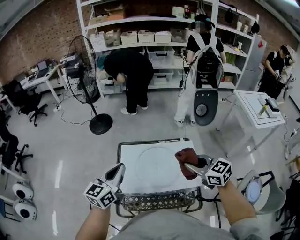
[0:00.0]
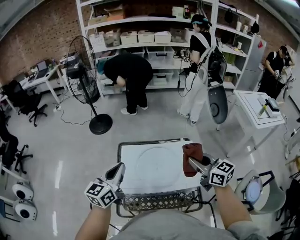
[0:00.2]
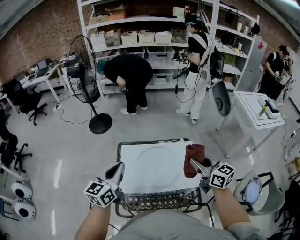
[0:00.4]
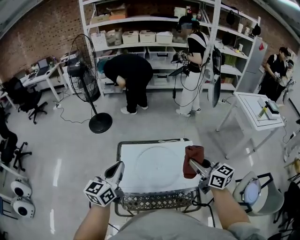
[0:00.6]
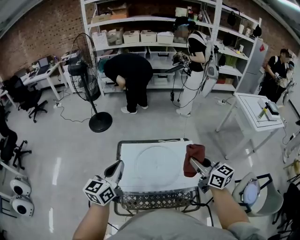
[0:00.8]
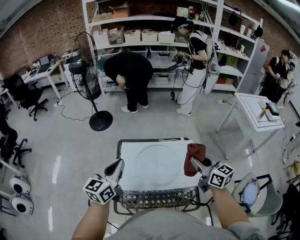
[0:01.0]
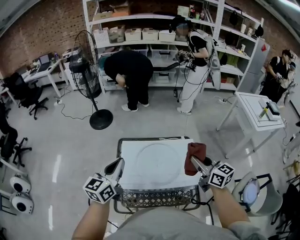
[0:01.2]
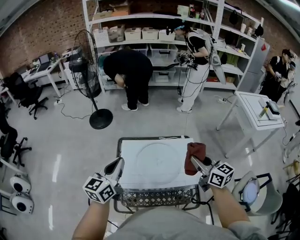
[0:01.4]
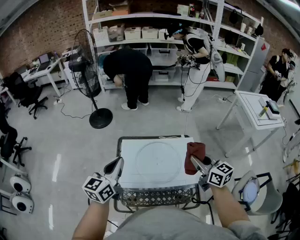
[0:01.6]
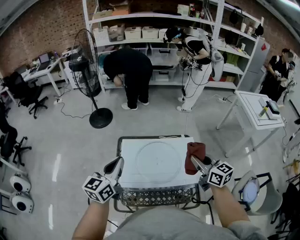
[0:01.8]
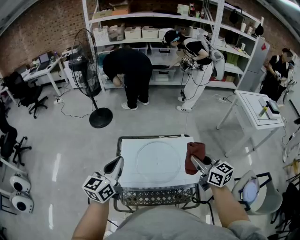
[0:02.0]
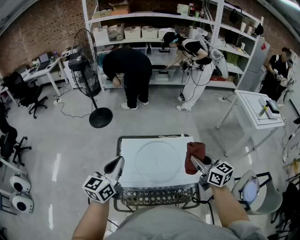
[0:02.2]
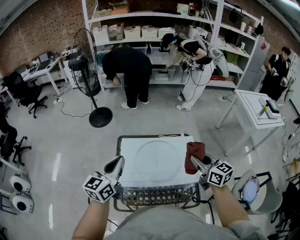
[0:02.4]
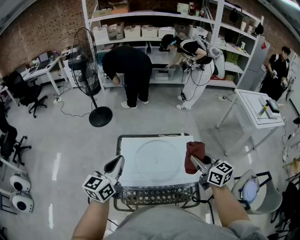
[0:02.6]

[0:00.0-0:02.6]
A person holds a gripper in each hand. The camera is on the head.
0:00.0 to 0:01.2: The right gripper rotates some 20 degrees.
0:01.2 to 0:02.6: Neither gripper changes place.

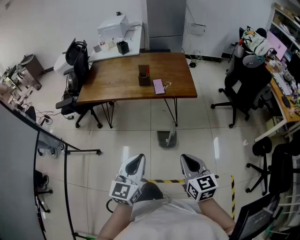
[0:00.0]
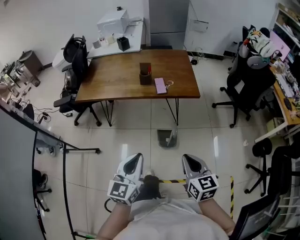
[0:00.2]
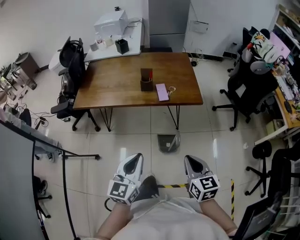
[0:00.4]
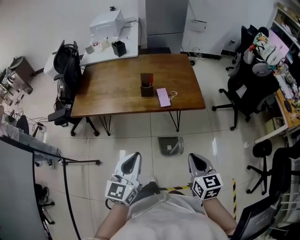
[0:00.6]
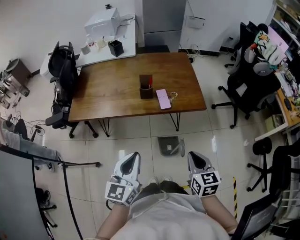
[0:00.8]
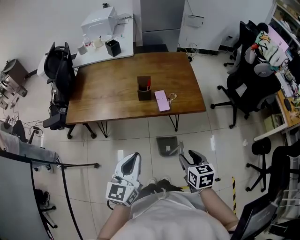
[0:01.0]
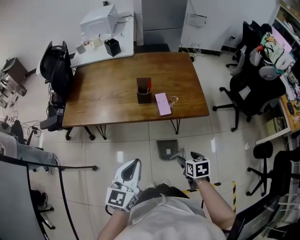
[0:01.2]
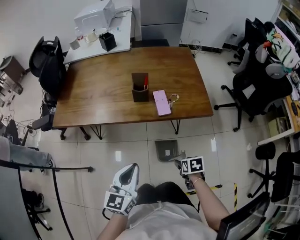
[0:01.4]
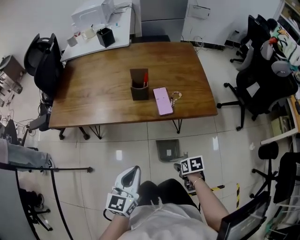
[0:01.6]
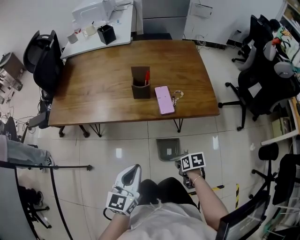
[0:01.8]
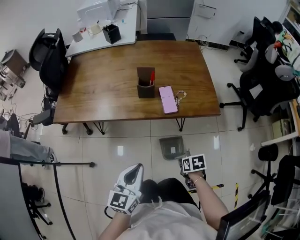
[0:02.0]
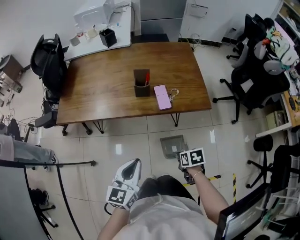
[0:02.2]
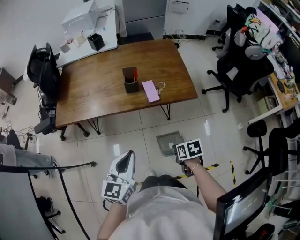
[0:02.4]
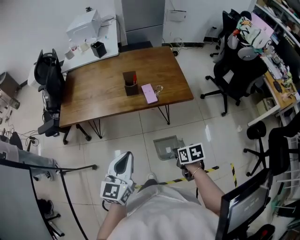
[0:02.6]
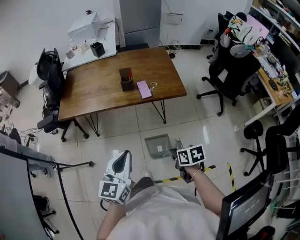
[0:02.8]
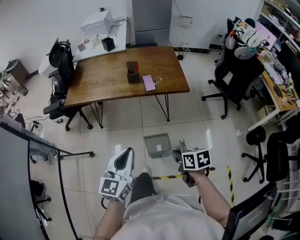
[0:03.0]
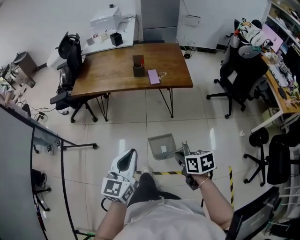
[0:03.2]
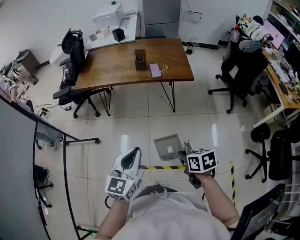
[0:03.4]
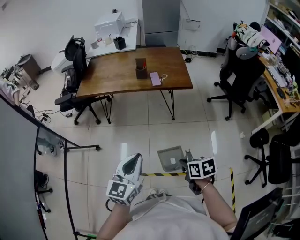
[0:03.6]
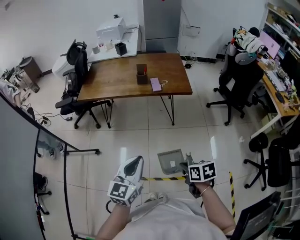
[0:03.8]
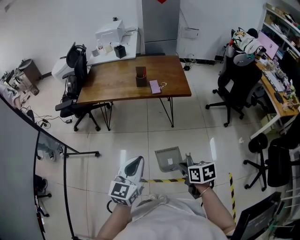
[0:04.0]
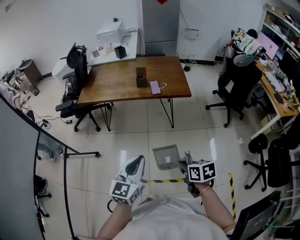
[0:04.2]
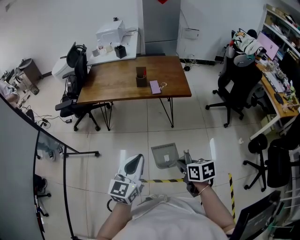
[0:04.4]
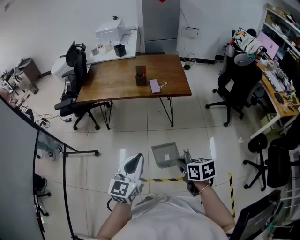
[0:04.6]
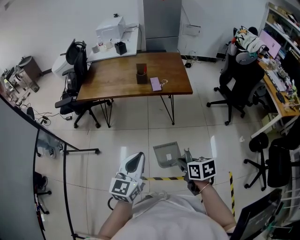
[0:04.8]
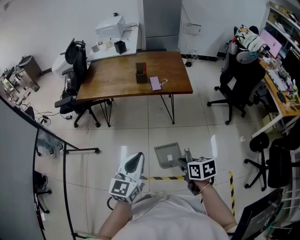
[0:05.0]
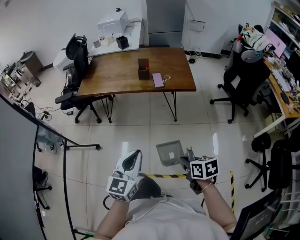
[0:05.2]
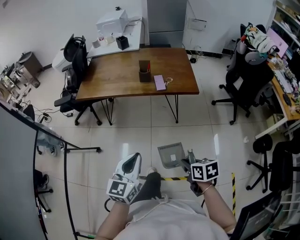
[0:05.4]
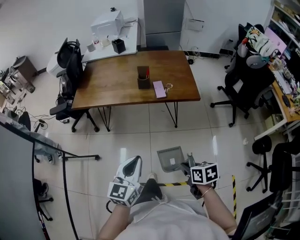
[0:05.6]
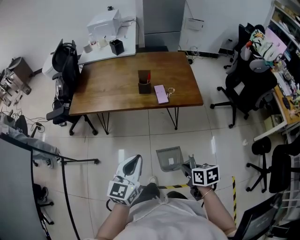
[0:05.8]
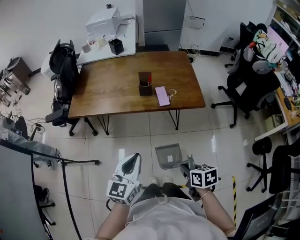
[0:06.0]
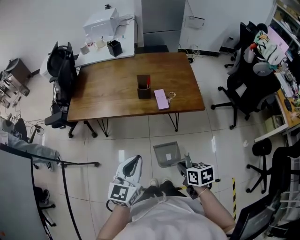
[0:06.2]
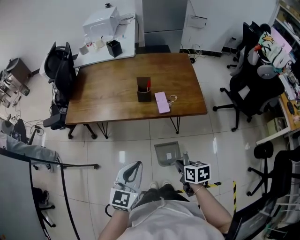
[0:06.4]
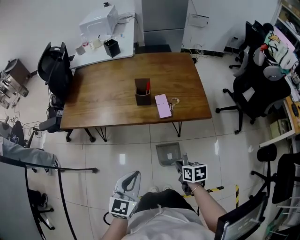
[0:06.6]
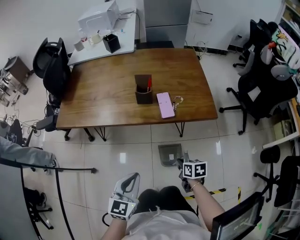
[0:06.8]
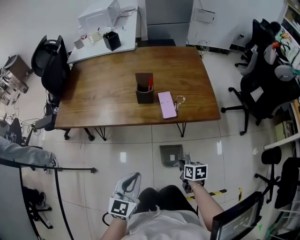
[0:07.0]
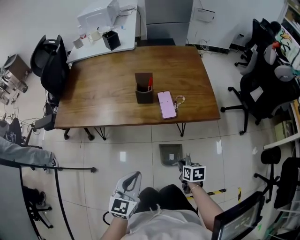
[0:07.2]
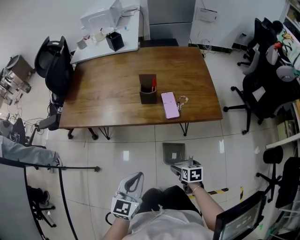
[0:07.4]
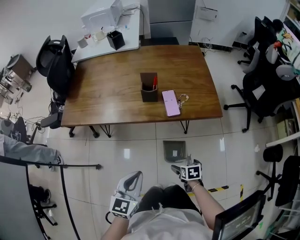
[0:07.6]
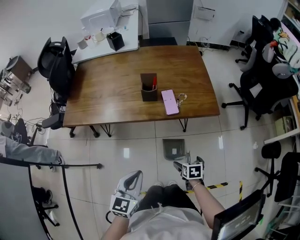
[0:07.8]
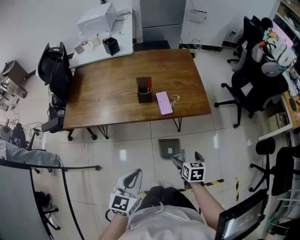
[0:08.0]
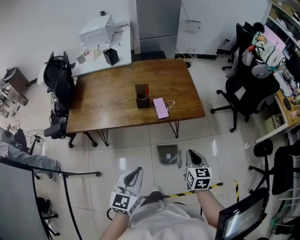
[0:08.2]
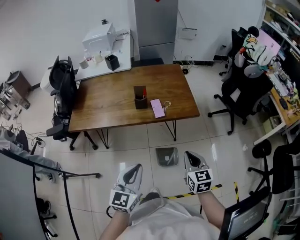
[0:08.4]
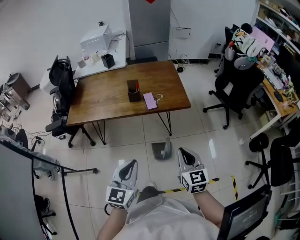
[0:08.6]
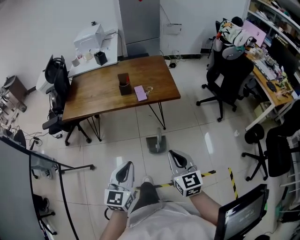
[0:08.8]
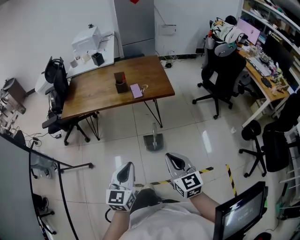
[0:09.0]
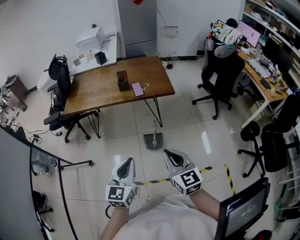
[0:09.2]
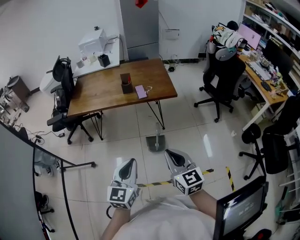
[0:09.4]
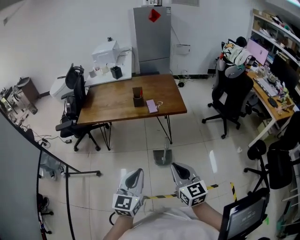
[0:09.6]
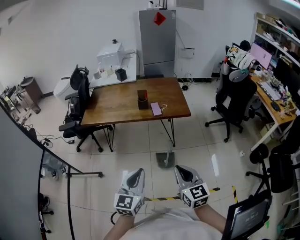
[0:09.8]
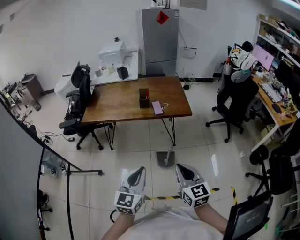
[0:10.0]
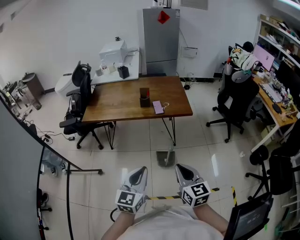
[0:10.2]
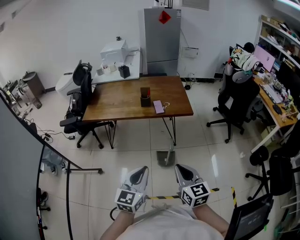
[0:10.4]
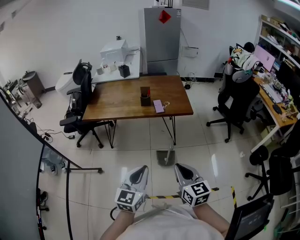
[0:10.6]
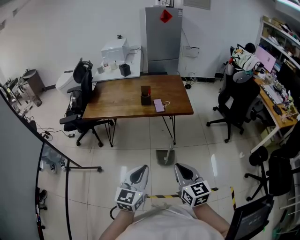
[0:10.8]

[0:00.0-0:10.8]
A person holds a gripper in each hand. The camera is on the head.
0:00.0 to 0:01.6: The right gripper is displaced downward and forward by about 50 cm, points its fingers about 50 degrees further downward, and opens. The left gripper travels forward and downward by roughly 35 cm.
0:01.6 to 0:03.0: The right gripper goes about 35 cm upward and backward, rotates about 20 degrees, and closes its fingers; the left gripper goes about 30 cm backward and upward.
0:03.0 to 0:04.6: The two grippers go about 10 cm backward.
0:04.6 to 0:06.2: Both grippers move forward, approximately 20 cm.
0:06.2 to 0:07.8: The right gripper is displaced downward and forward by about 20 cm, and opens up. Meanwhile the left gripper goes about 10 cm downward.
0:07.8 to 0:09.2: The left gripper travels backward, upward and to the right by roughly 30 cm, while the right gripper is displaced upward and backward by some 50 cm, tilts its fingers approximately 50 degrees upward, and closes.
0:09.2 to 0:10.8: The grippers stay close to where they were, moving slightly.

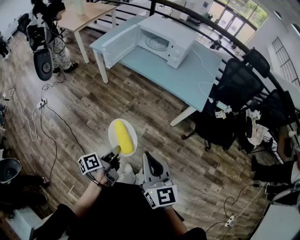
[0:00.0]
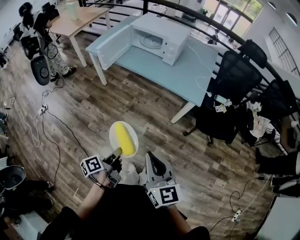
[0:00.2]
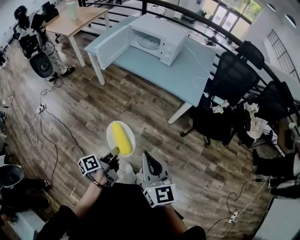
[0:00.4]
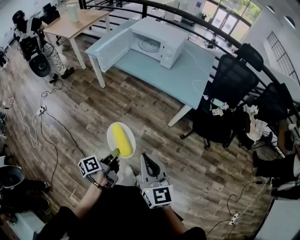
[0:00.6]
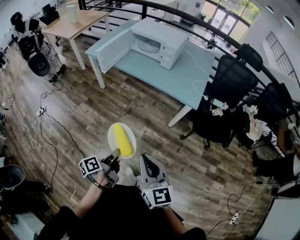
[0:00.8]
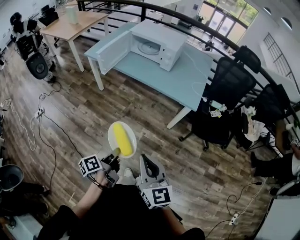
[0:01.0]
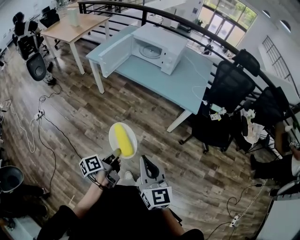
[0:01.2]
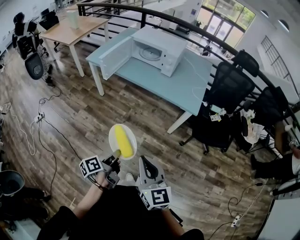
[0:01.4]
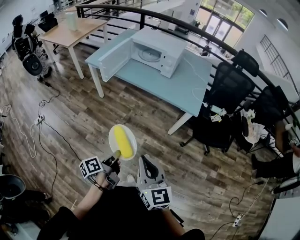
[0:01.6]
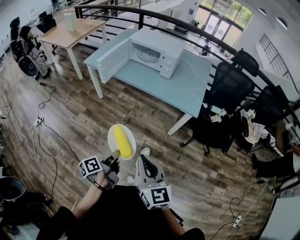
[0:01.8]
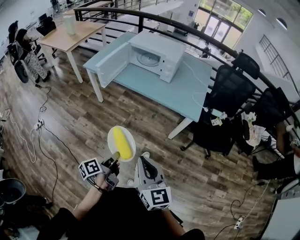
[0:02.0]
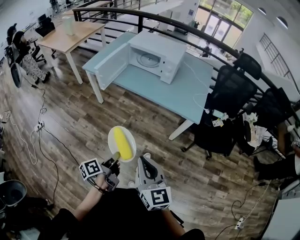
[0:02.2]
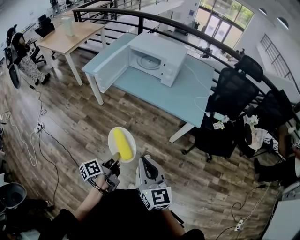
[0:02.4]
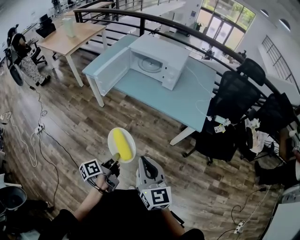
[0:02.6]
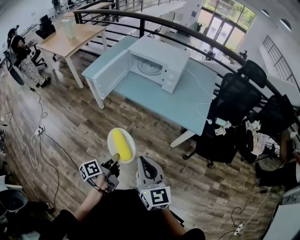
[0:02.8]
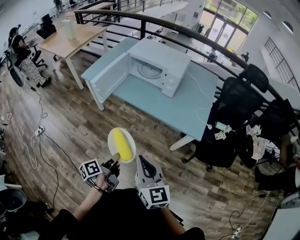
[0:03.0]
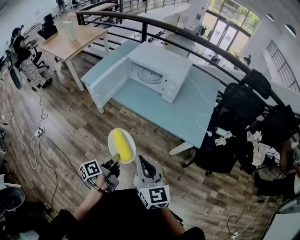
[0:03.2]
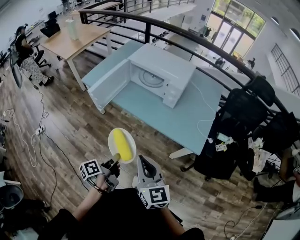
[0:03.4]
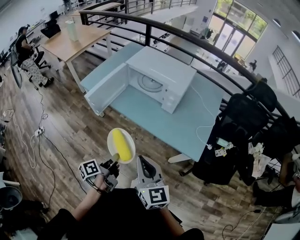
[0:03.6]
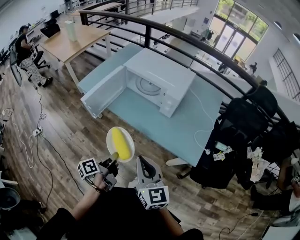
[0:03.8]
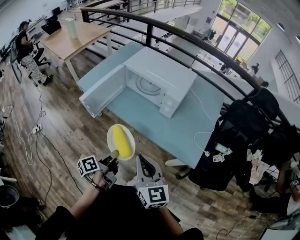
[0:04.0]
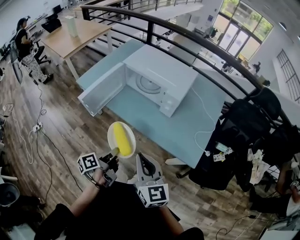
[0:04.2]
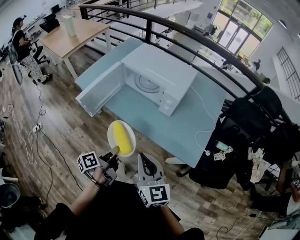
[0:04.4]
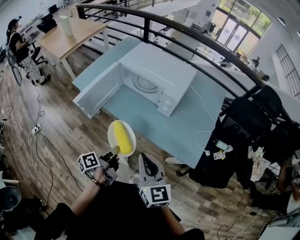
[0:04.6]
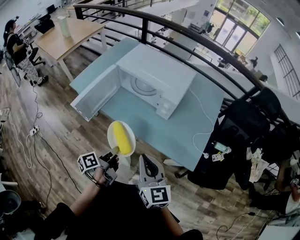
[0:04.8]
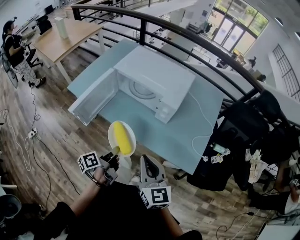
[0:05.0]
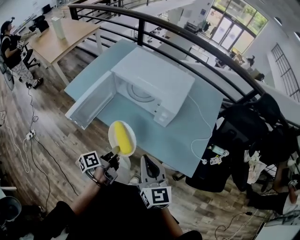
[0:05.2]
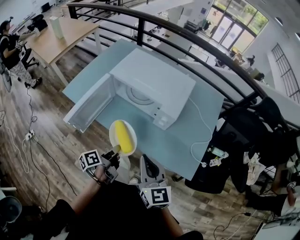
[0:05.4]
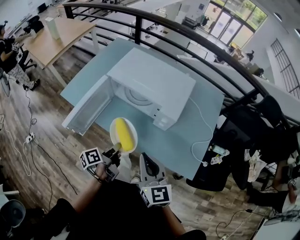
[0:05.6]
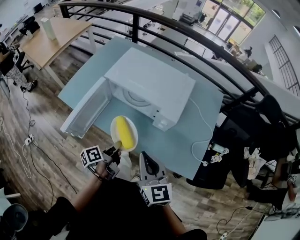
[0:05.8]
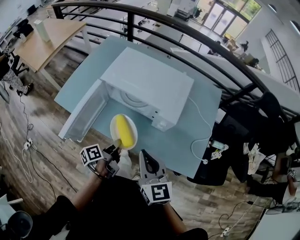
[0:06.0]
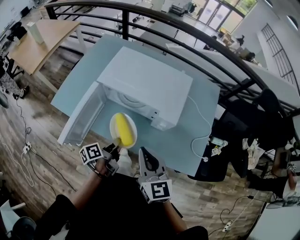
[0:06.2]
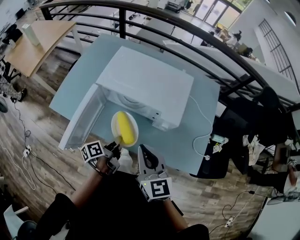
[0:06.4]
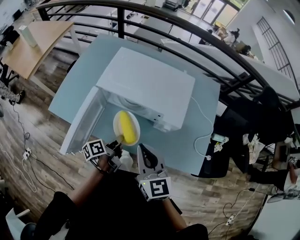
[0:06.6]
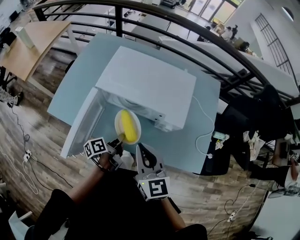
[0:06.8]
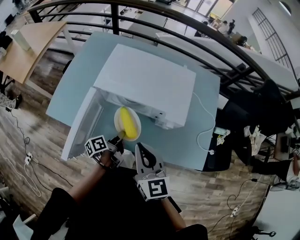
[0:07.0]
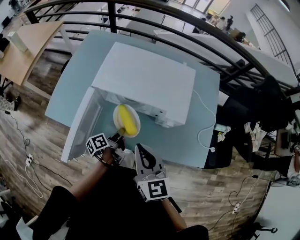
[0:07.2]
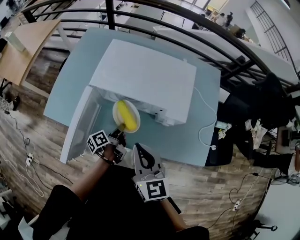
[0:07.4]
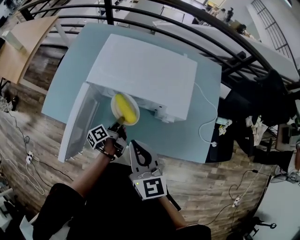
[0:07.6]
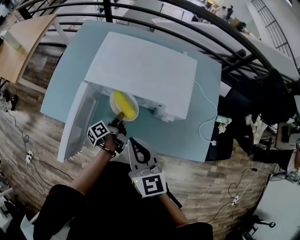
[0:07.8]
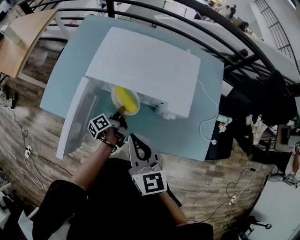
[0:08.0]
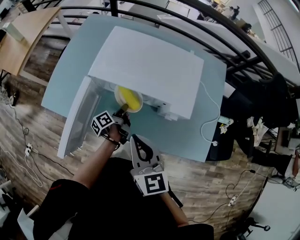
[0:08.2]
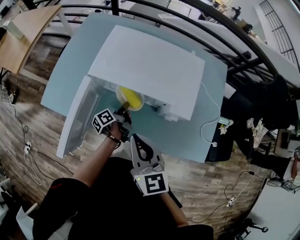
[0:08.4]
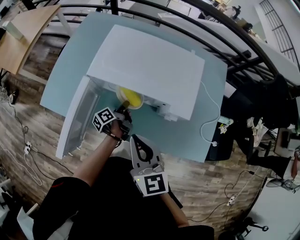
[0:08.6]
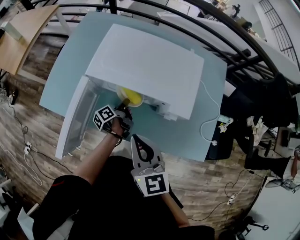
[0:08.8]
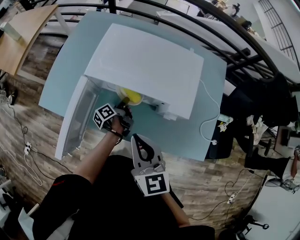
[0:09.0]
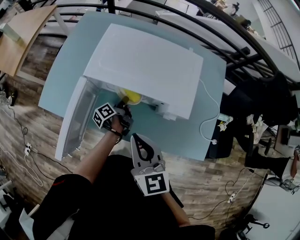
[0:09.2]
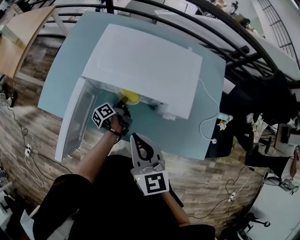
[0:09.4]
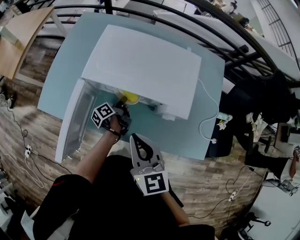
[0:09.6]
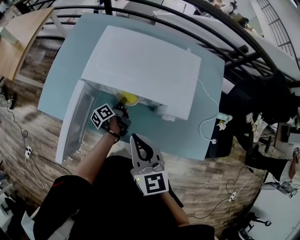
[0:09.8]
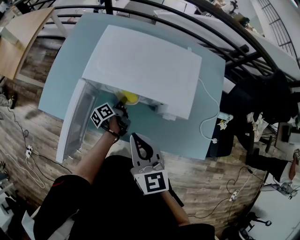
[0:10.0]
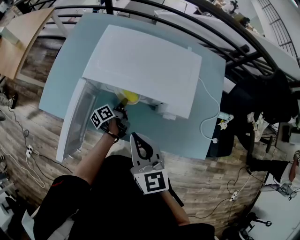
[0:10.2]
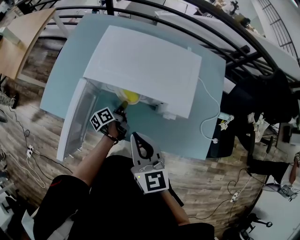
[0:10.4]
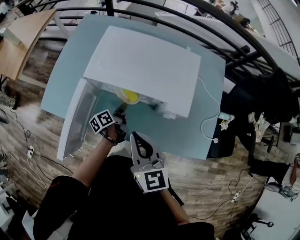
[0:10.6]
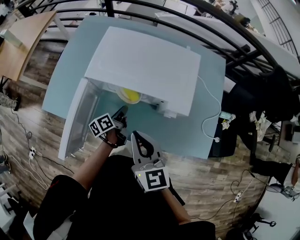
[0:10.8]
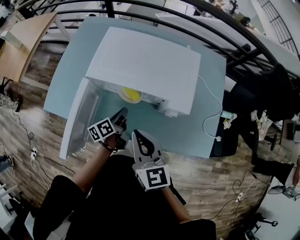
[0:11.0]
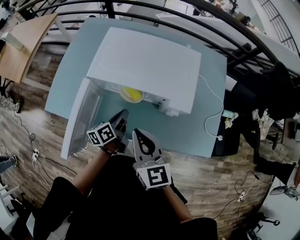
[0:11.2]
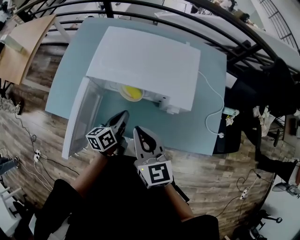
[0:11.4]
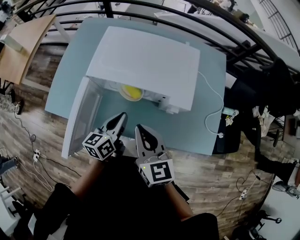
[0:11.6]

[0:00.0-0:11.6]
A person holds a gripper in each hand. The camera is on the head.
0:01.4 to 0:02.8: The right gripper changes place by roughly 15 cm.
0:02.8 to 0:04.4: The right gripper shifts by approximately 25 cm.
0:04.4 to 0:05.8: The right gripper shifts by approximately 15 cm.
0:05.8 to 0:07.2: The right gripper ends up about 10 cm from where it was.
